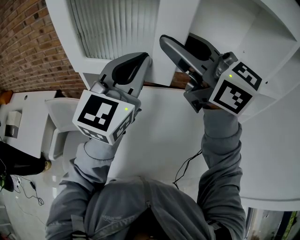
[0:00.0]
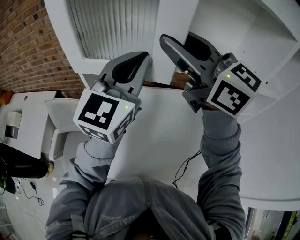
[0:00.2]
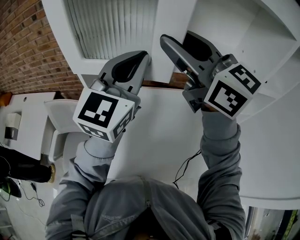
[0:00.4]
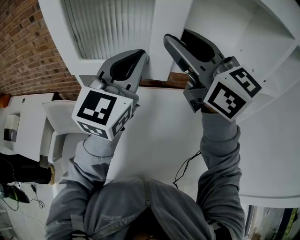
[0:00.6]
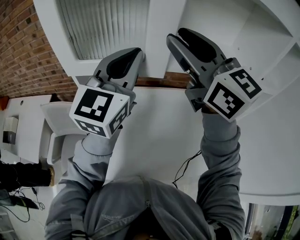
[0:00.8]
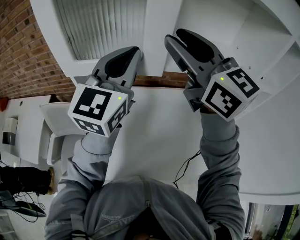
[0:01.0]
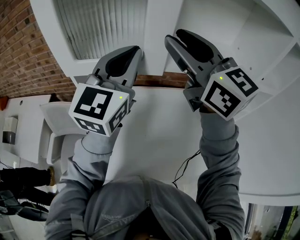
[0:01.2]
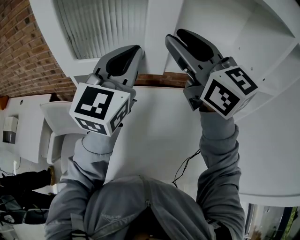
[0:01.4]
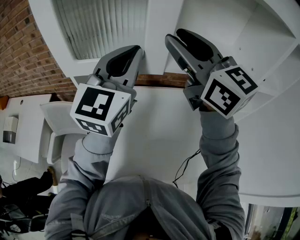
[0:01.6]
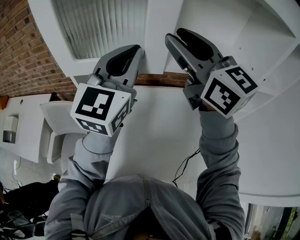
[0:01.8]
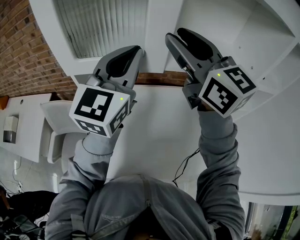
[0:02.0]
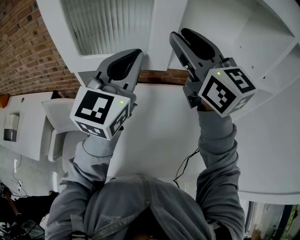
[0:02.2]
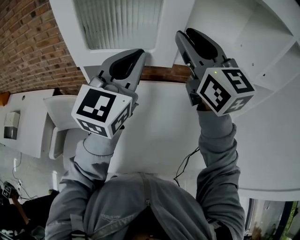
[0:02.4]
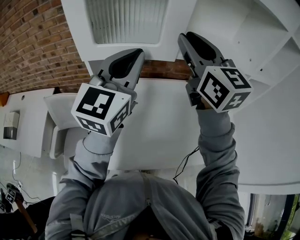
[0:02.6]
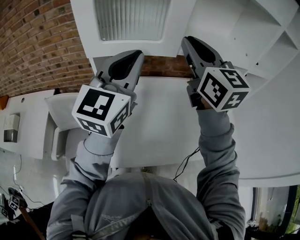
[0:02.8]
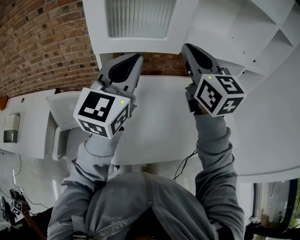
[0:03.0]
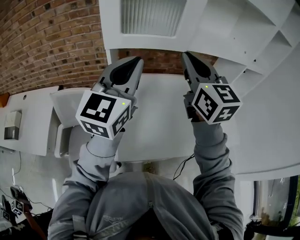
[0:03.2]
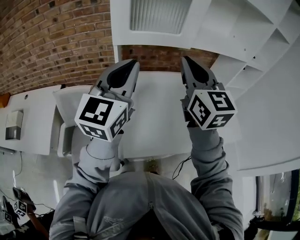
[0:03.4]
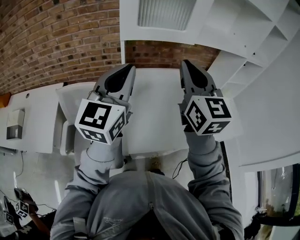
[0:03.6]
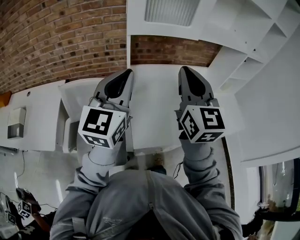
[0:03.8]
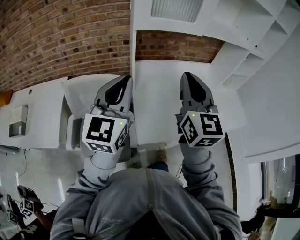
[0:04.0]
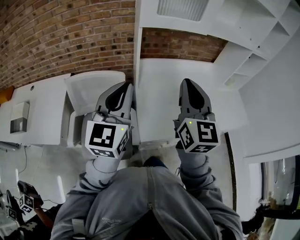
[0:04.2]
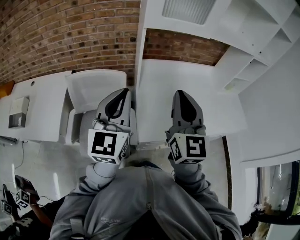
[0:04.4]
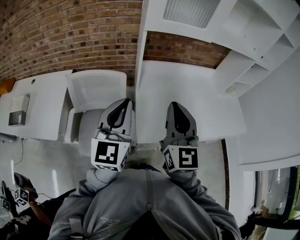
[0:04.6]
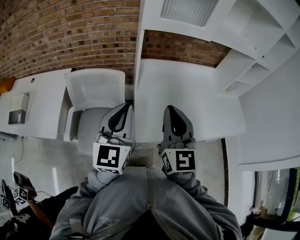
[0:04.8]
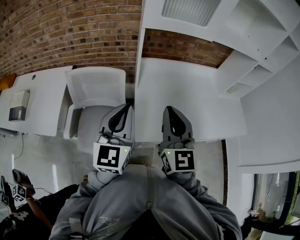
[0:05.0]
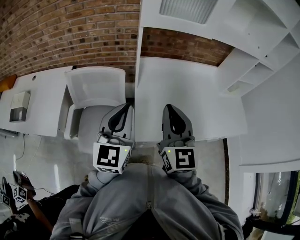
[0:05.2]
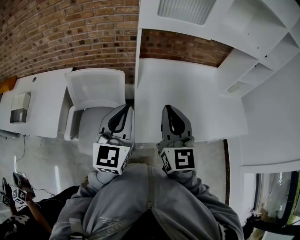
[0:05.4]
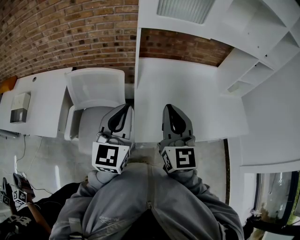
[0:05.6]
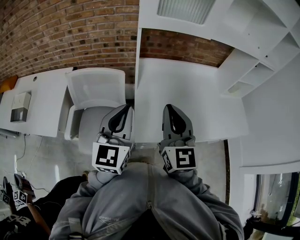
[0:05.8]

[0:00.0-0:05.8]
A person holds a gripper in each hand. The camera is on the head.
0:00.0 to 0:01.4: The right gripper changes place by approximately 5 cm.
0:01.4 to 0:02.8: The left gripper travels backward and to the left by approximately 10 cm. The right gripper changes place by approximately 5 cm, and closes its fingers.
0:02.8 to 0:04.4: The grippers both shift backward, to the left and downward by some 30 cm.
0:04.4 to 0:05.8: The left gripper changes place by about 5 cm.

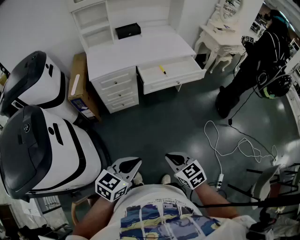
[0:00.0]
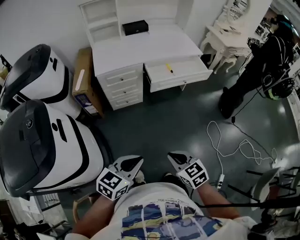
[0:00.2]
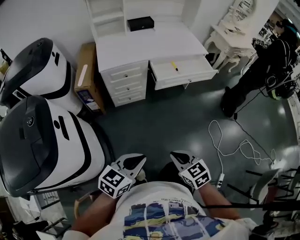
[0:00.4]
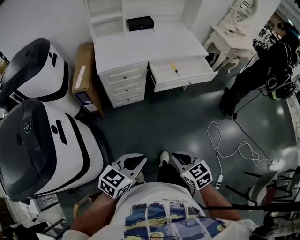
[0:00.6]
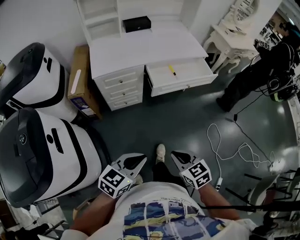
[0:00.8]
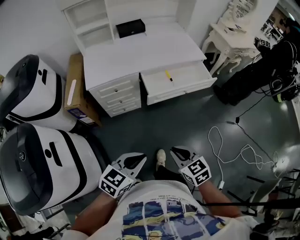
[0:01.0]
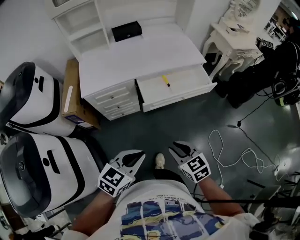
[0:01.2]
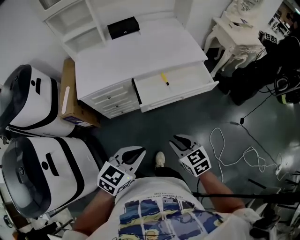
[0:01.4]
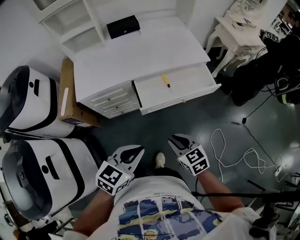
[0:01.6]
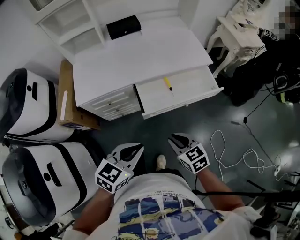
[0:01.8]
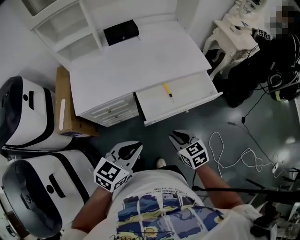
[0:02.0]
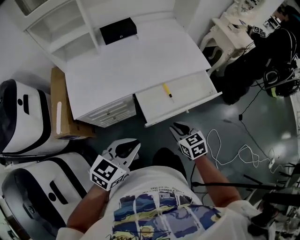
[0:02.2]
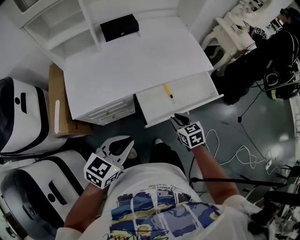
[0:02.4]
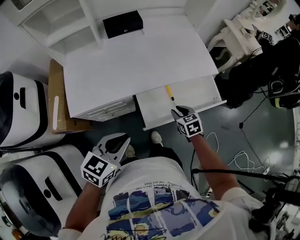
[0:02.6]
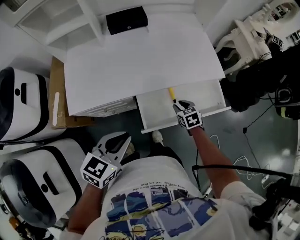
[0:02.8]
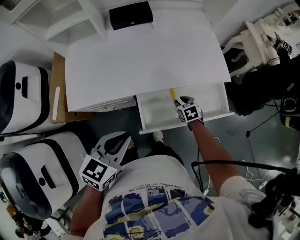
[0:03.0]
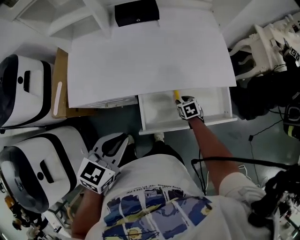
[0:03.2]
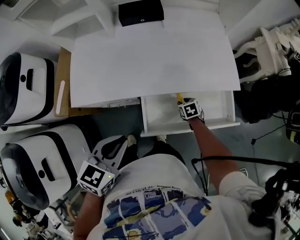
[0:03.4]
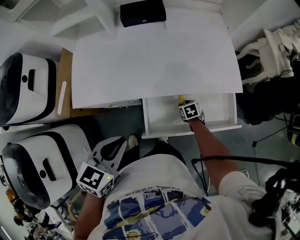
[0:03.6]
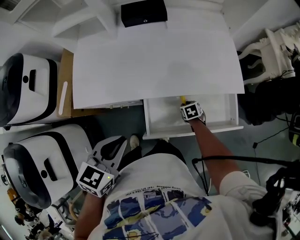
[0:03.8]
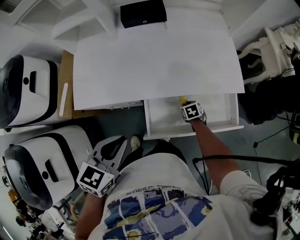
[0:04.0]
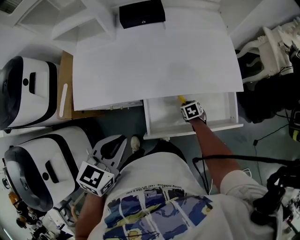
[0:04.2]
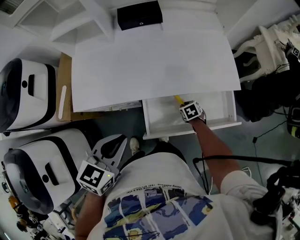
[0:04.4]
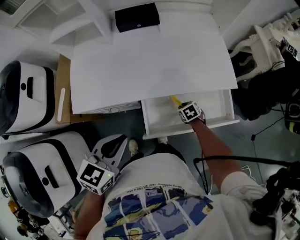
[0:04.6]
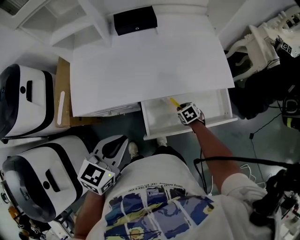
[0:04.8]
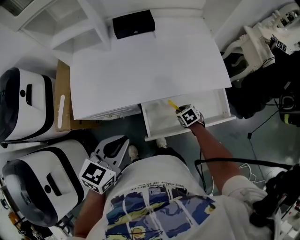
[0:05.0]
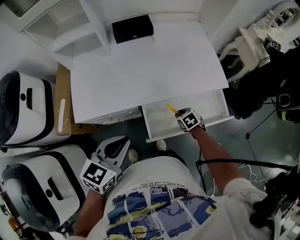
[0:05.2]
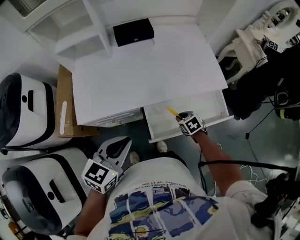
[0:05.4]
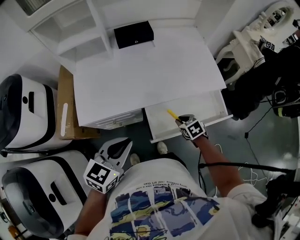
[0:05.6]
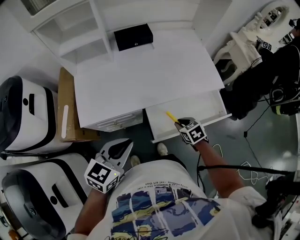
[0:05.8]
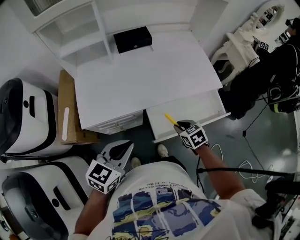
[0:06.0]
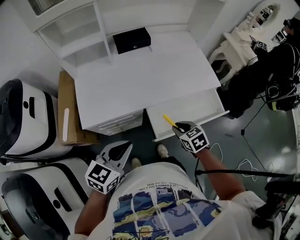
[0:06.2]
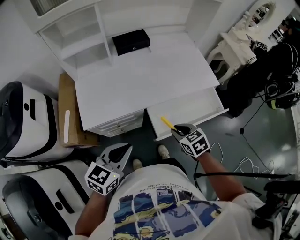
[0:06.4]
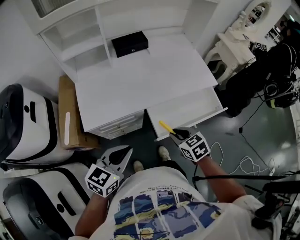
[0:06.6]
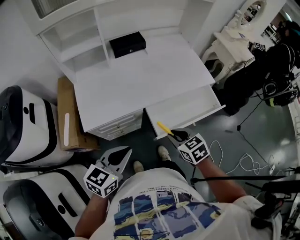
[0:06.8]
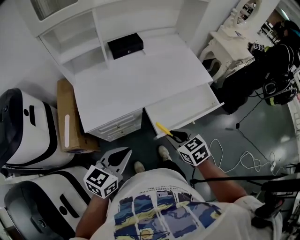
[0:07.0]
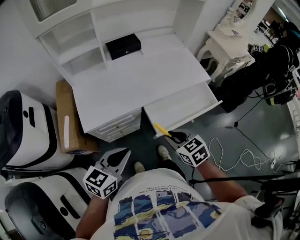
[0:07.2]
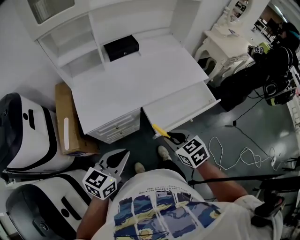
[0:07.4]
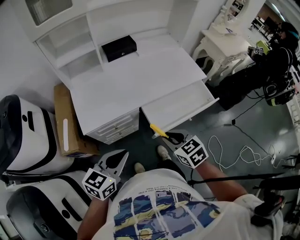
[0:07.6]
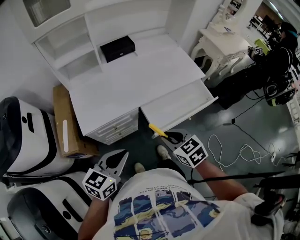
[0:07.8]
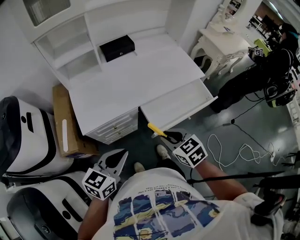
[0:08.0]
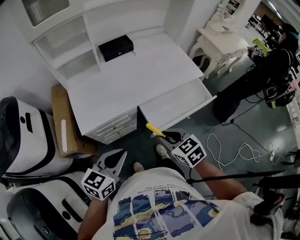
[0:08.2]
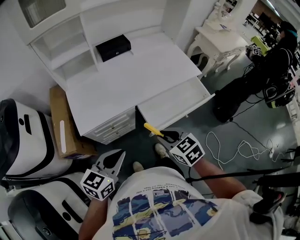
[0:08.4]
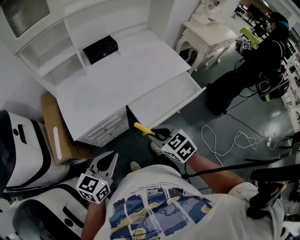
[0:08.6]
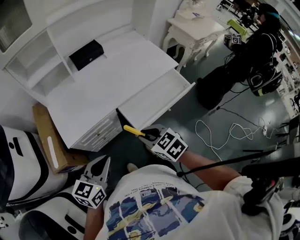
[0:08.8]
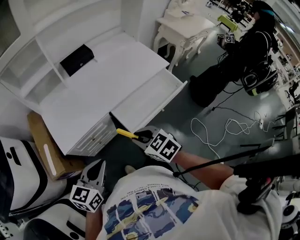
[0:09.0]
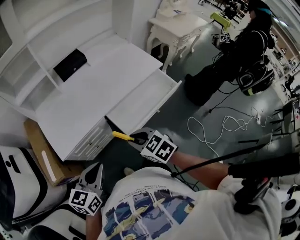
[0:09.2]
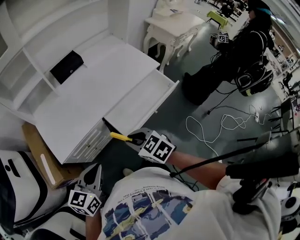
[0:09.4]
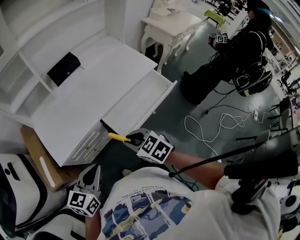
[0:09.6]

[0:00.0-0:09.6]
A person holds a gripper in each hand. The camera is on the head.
0:00.0 to 0:01.6: Both grippers move forward, about 35 cm.
0:01.6 to 0:03.2: The right gripper goes some 40 cm forward and downward, and swivels approximately 30 degrees. The left gripper moves forward, approximately 25 cm.
0:03.2 to 0:04.8: There are only small adjustments of the grippers.
0:04.8 to 0:06.4: The left gripper heads to the left and backward, covering roughly 10 cm, while the right gripper heads upward, backward and to the left, covering approximately 30 cm, and changes its angle by some 20 degrees.
0:06.4 to 0:08.0: The right gripper moves backward, upward and to the left, about 10 cm. The left gripper moves backward, approximately 5 cm.
0:08.0 to 0:09.6: The grippers move only a little.

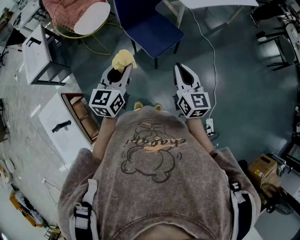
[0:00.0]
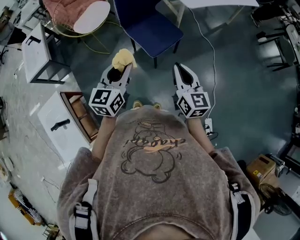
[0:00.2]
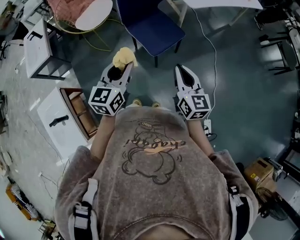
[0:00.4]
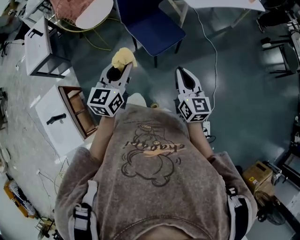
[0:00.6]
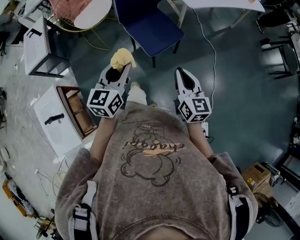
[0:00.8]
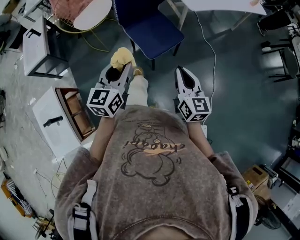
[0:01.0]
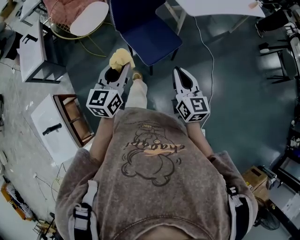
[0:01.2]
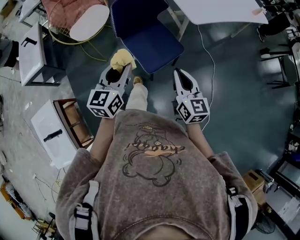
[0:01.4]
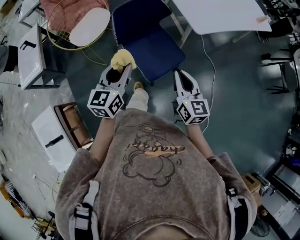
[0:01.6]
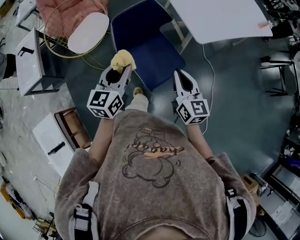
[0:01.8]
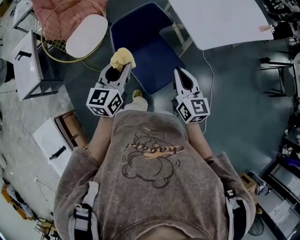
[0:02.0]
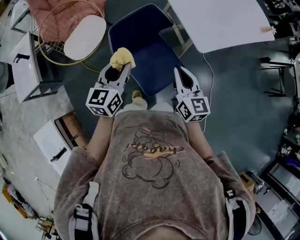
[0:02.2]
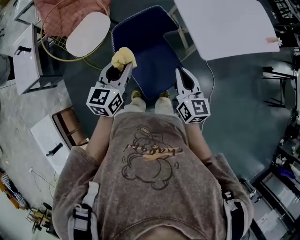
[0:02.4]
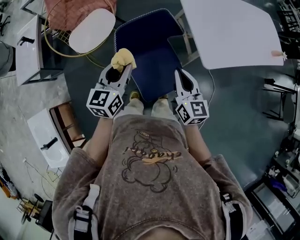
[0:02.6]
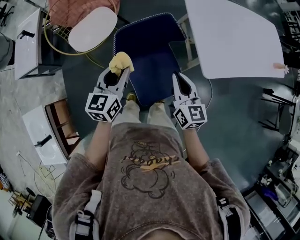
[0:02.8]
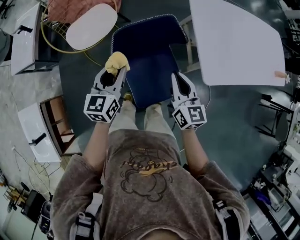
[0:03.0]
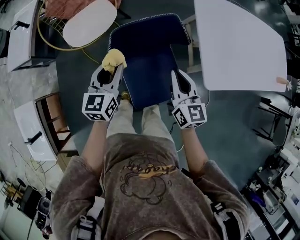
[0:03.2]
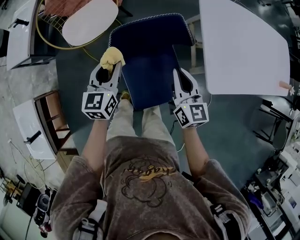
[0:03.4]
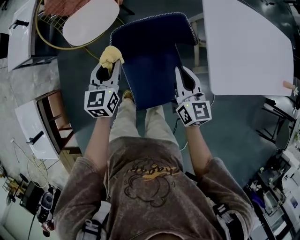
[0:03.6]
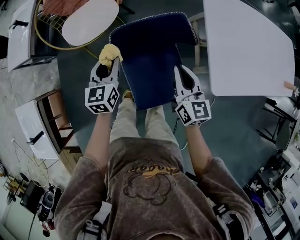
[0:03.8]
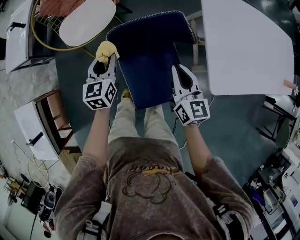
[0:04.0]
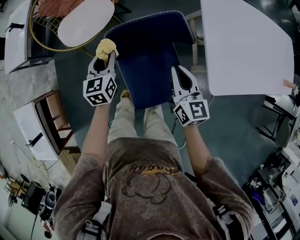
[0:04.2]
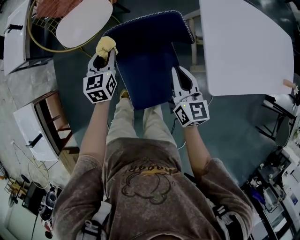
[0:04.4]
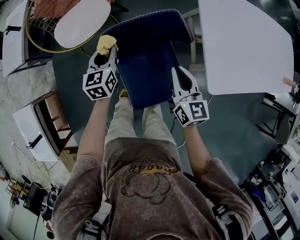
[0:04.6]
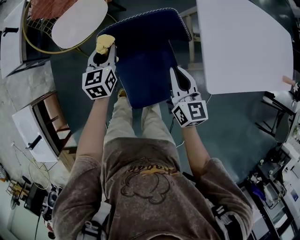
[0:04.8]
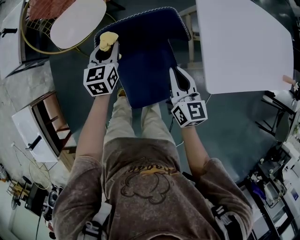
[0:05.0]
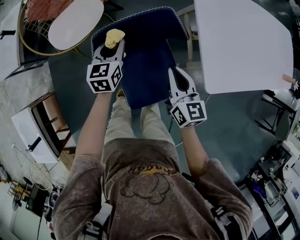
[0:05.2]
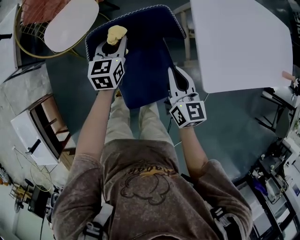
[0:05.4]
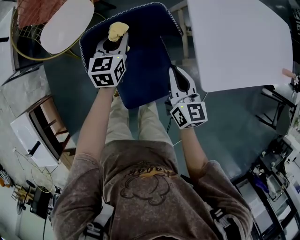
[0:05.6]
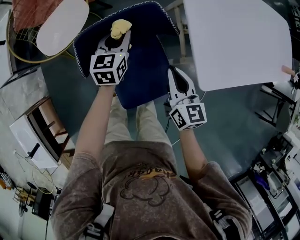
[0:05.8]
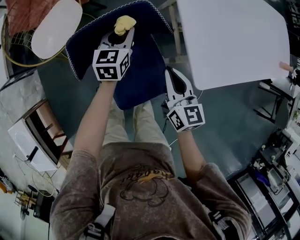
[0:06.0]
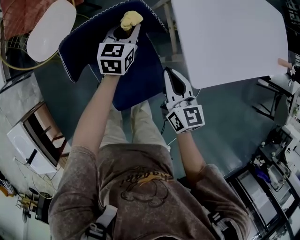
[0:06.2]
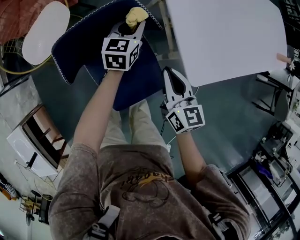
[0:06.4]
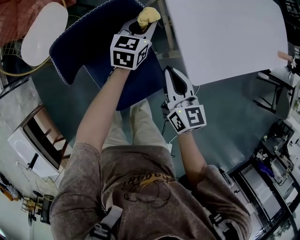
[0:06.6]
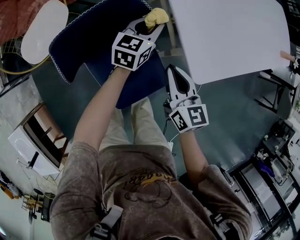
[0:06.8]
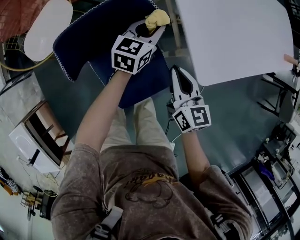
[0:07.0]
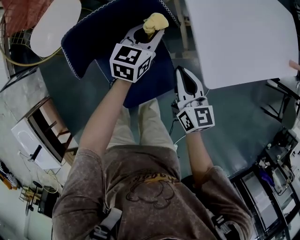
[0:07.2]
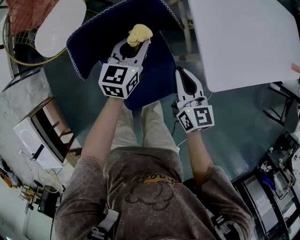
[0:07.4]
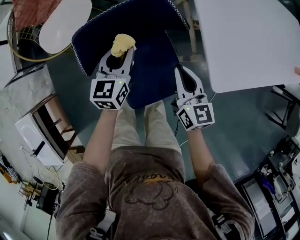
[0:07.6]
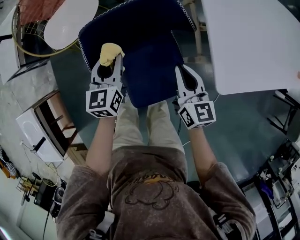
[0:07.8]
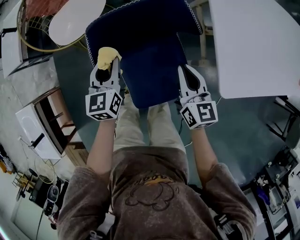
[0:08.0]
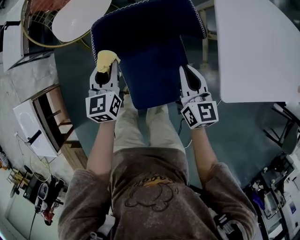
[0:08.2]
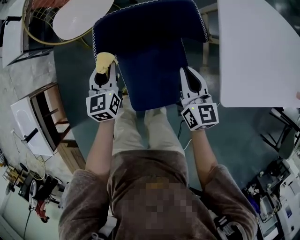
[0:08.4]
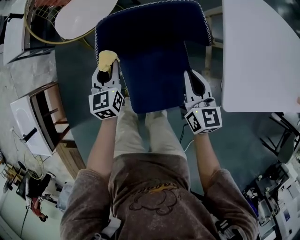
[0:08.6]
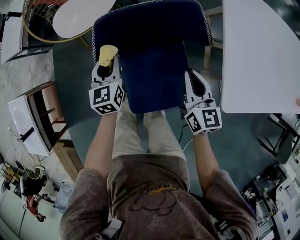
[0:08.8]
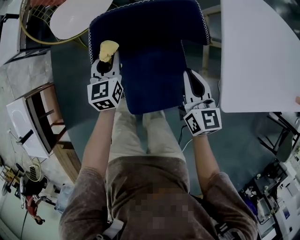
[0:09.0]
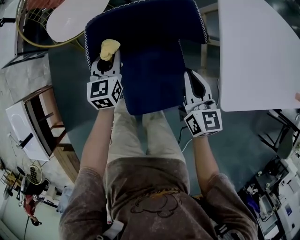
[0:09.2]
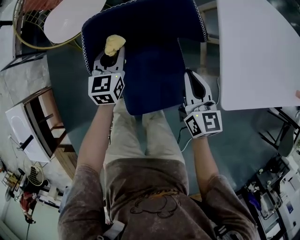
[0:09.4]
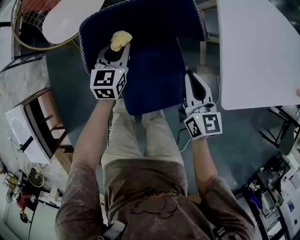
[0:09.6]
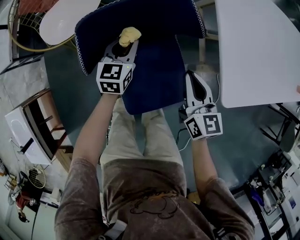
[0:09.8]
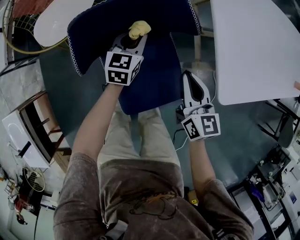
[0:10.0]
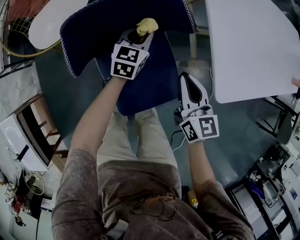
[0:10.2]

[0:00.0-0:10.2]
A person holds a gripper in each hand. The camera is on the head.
0:00.0 to 0:01.4: The grippers both shift forward by some 15 cm.
0:01.4 to 0:03.0: The two grippers go approximately 30 cm forward.
0:03.0 to 0:04.4: The right gripper is displaced downward and forward by roughly 10 cm. Meanwhile the left gripper travels downward and forward by roughly 15 cm.
0:04.4 to 0:05.8: The right gripper heads to the right, covering about 5 cm. Meanwhile the left gripper shifts about 15 cm to the right and forward.
0:05.8 to 0:07.2: The left gripper is displaced to the right by roughly 15 cm. Meanwhile the right gripper changes place by some 5 cm.
0:07.2 to 0:08.8: The right gripper shifts by approximately 10 cm; the left gripper changes place by about 30 cm, and turns by some 40 degrees.
0:08.8 to 0:10.2: The right gripper changes place by some 5 cm; the left gripper travels to the right by about 20 cm, and swivels about 40 degrees.
